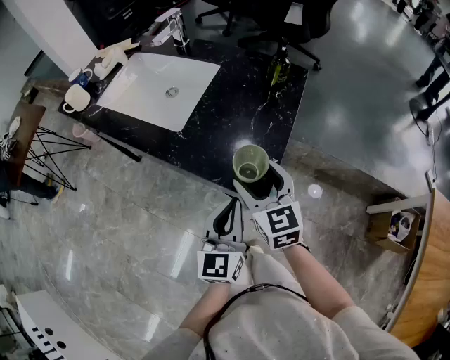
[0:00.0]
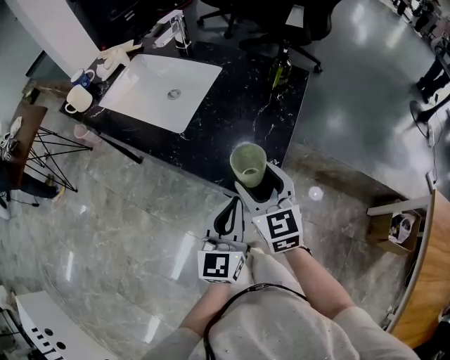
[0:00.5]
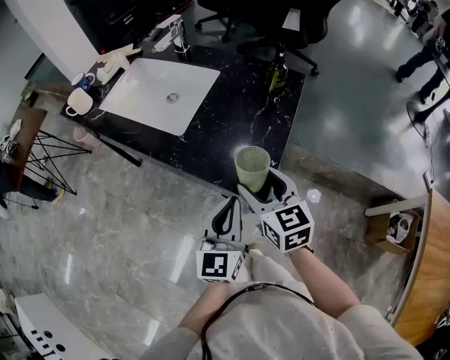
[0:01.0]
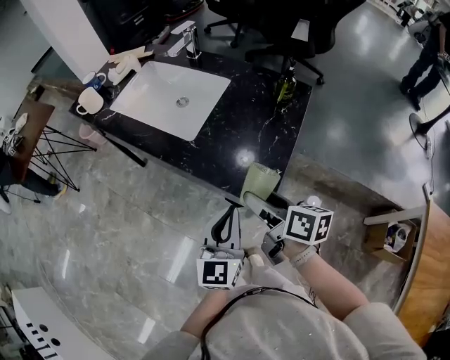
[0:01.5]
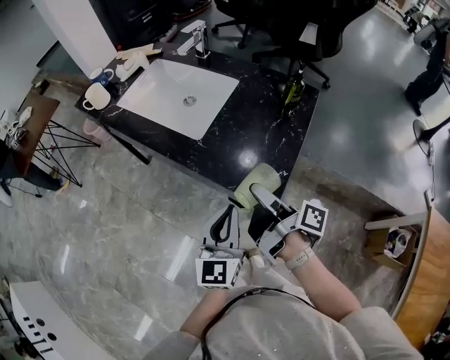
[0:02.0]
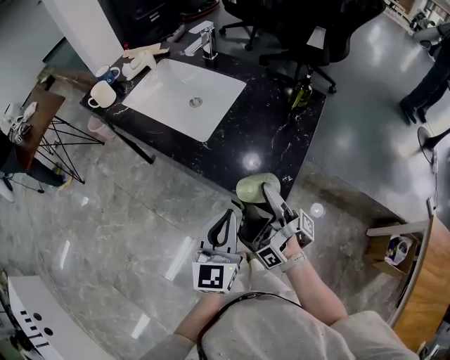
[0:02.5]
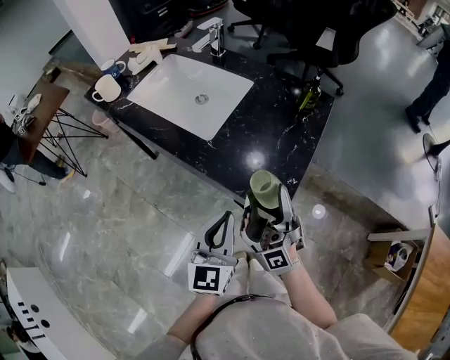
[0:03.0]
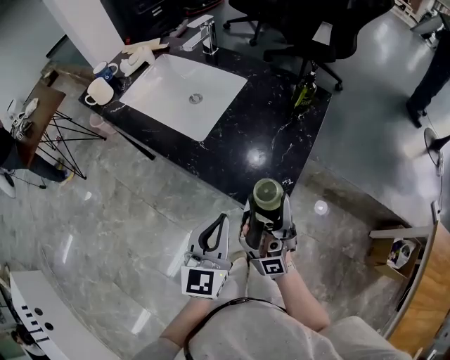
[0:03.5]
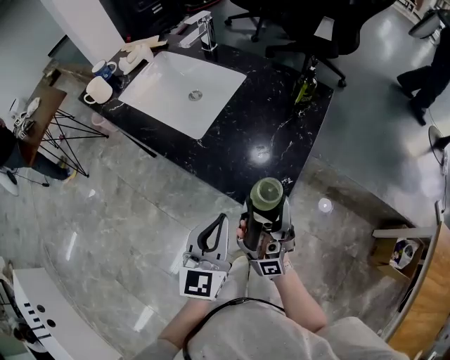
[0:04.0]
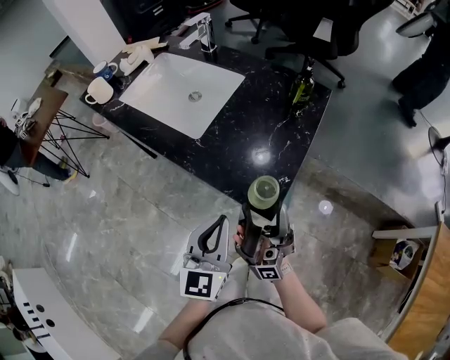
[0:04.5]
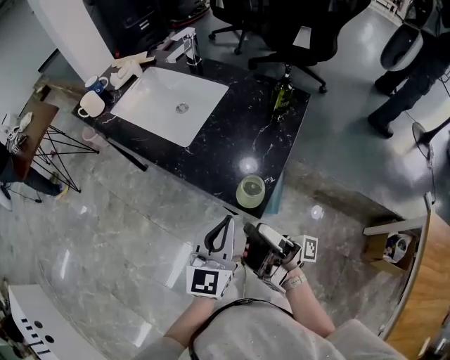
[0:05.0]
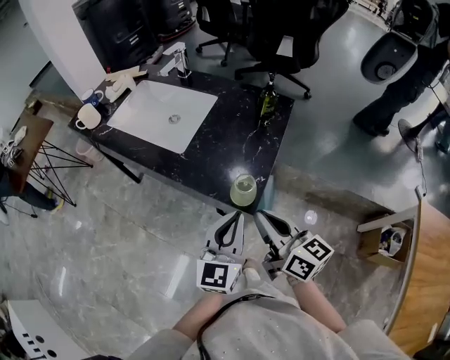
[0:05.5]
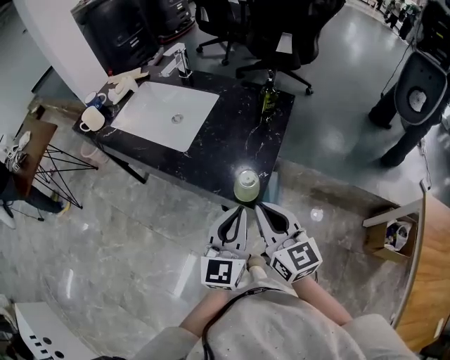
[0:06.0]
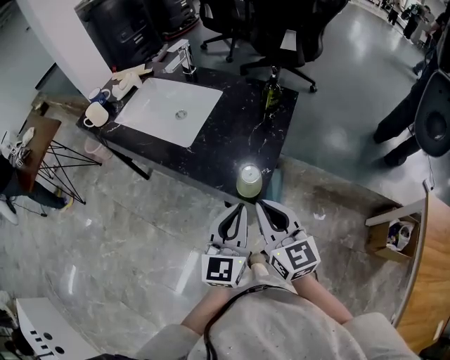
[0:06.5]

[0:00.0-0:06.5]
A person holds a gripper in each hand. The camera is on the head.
0:00.0 to 0:02.0: The left gripper ends up approximately 5 cm from where it was.
0:04.5 to 0:06.5: The left gripper moves about 5 cm.

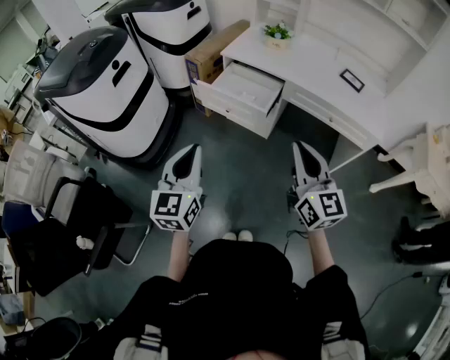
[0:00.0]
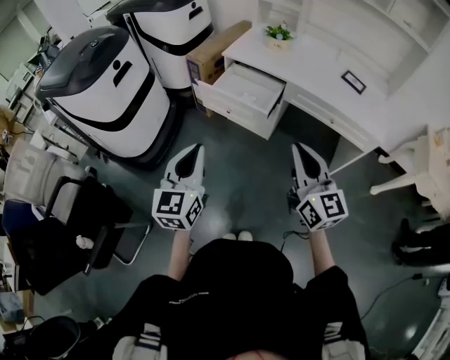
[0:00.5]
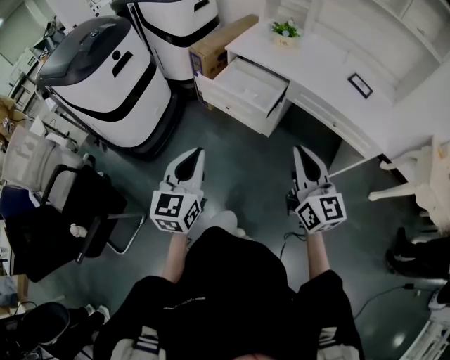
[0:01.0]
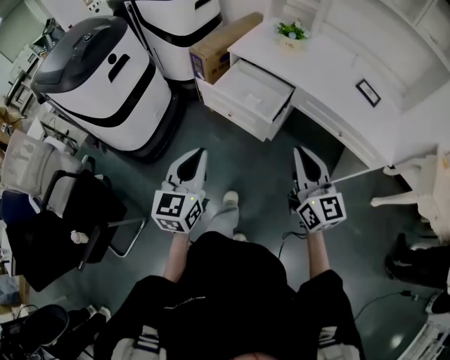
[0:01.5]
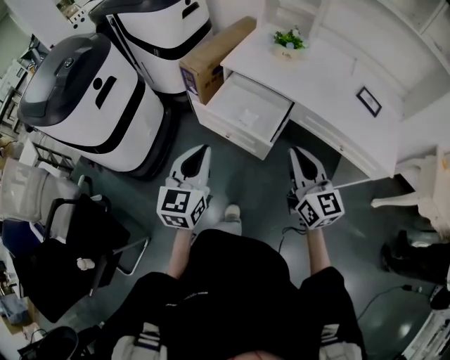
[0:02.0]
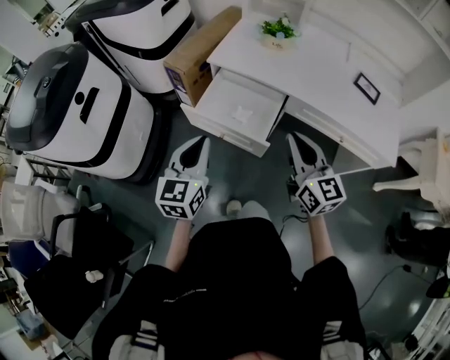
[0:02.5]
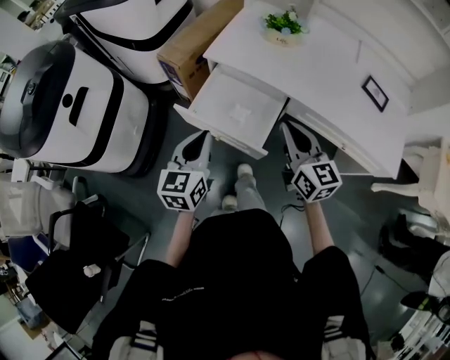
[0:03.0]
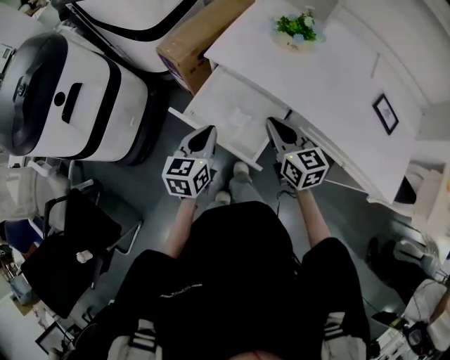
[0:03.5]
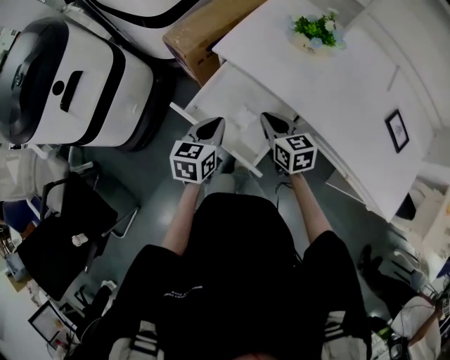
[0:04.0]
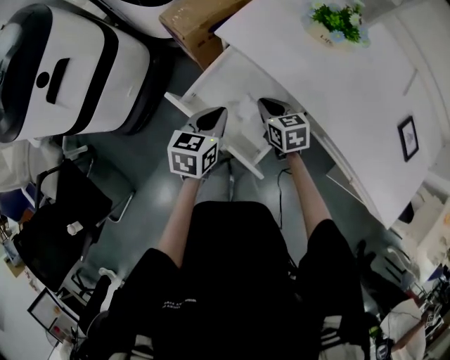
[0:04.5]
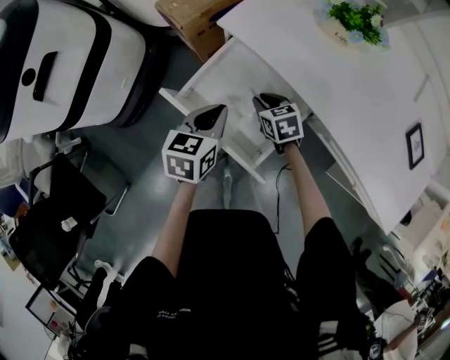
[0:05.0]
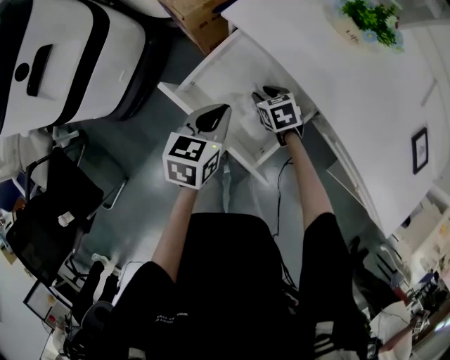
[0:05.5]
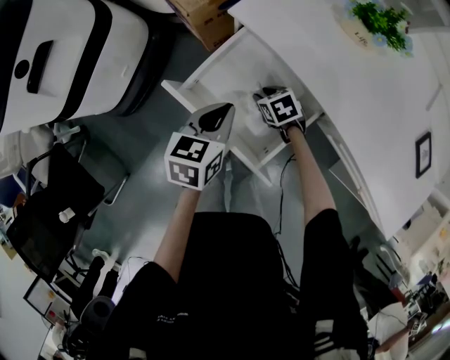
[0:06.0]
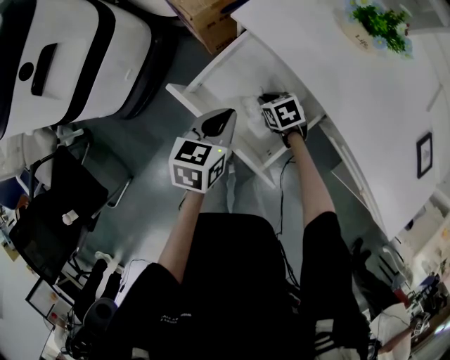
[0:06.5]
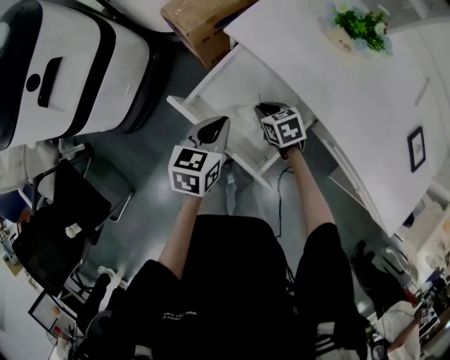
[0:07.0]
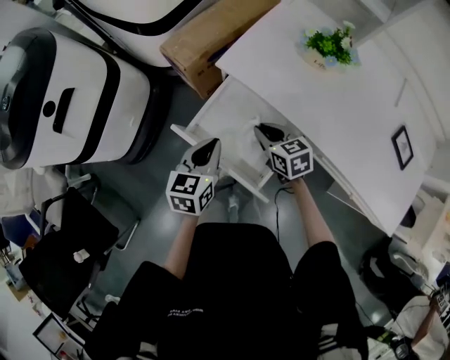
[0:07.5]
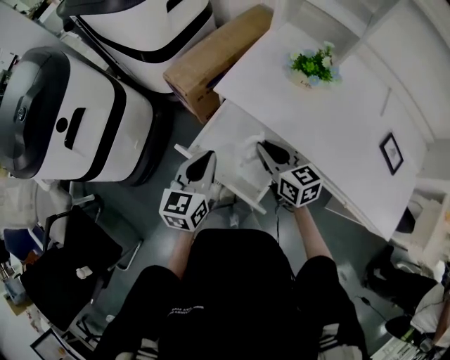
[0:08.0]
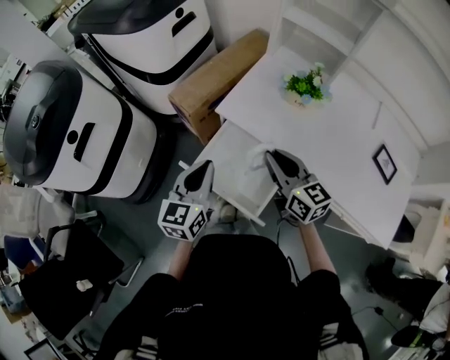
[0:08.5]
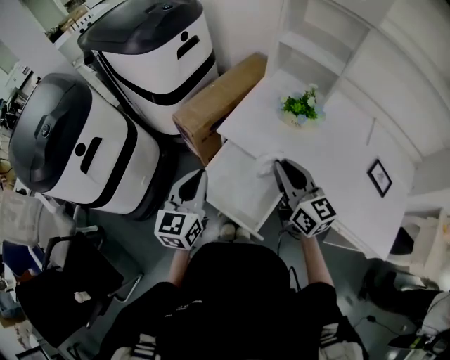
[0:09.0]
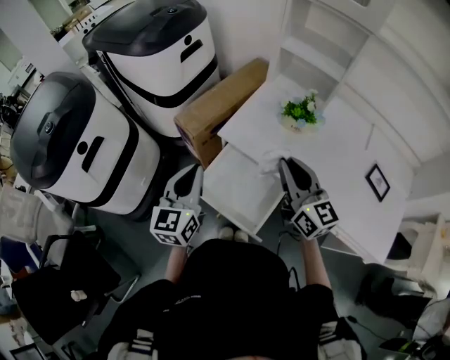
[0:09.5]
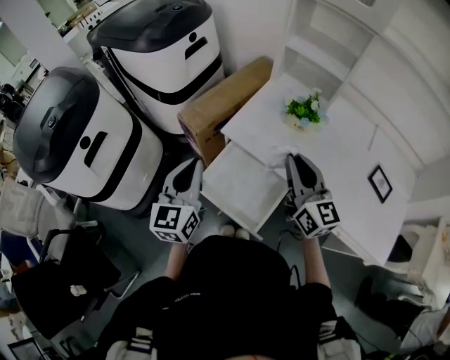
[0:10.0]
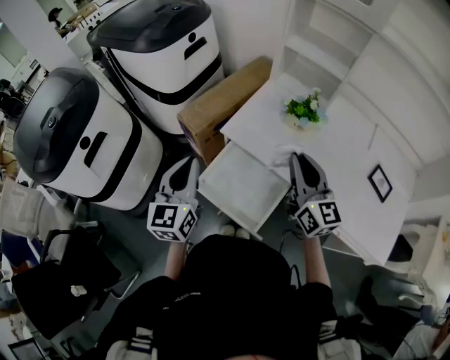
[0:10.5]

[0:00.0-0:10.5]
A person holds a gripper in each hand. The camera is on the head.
0:00.0 to 0:02.0: The two grippers go about 20 cm forward.
0:02.0 to 0:04.0: The grippers both shift forward and downward by roughly 35 cm. The left gripper turns by some 30 degrees, while the right gripper changes its angle by about 40 degrees.
0:04.0 to 0:06.5: The left gripper shifts about 5 cm downward, while the right gripper goes about 20 cm downward, angles its fingers downward, by roughly 30 degrees, and opens and closes again.
0:06.5 to 0:08.5: The left gripper moves upward, about 20 cm, and rotates roughly 30 degrees; the right gripper shifts approximately 35 cm upward, and tips its fingers upward by approximately 50 degrees.
0:08.5 to 0:10.5: The left gripper travels upward by approximately 10 cm, while the right gripper heads upward and to the right, covering about 10 cm, and turns by some 20 degrees.

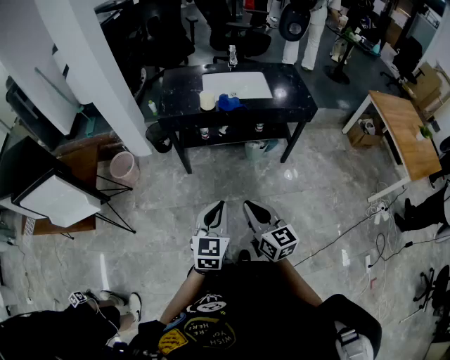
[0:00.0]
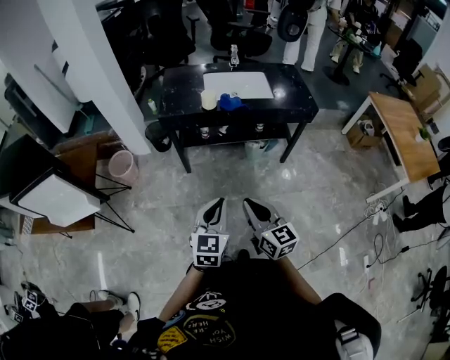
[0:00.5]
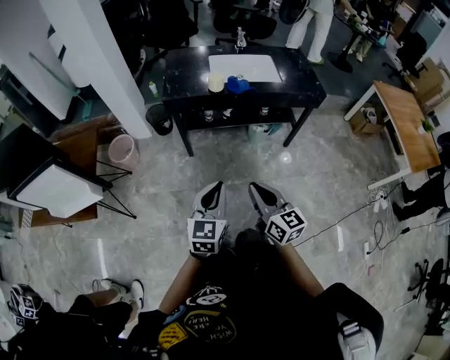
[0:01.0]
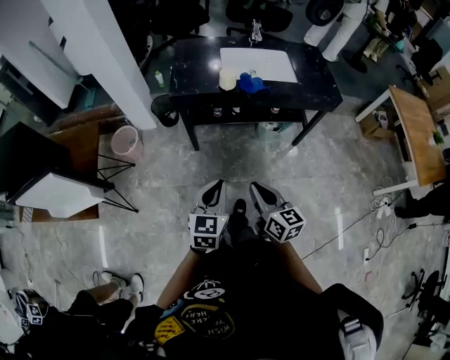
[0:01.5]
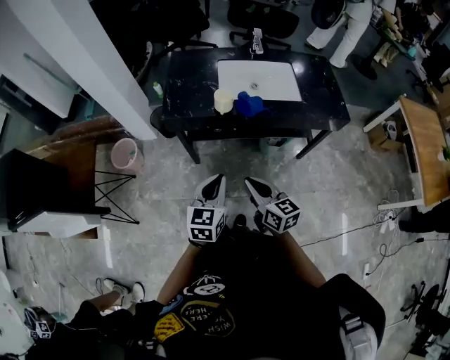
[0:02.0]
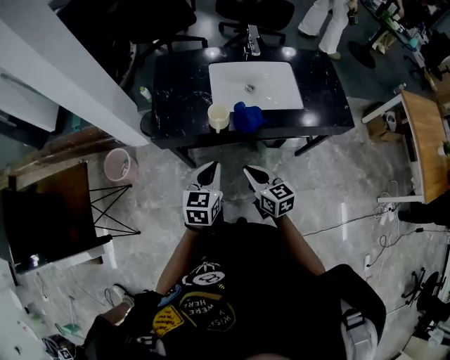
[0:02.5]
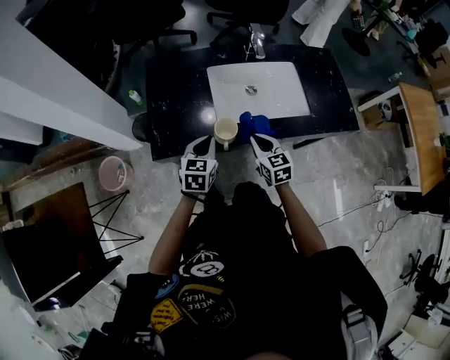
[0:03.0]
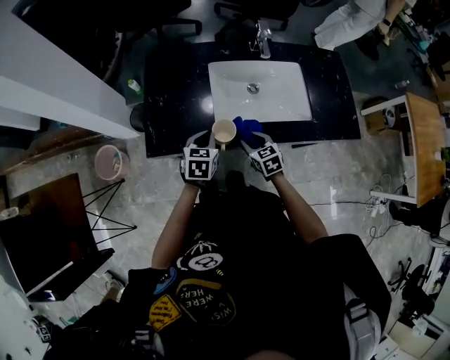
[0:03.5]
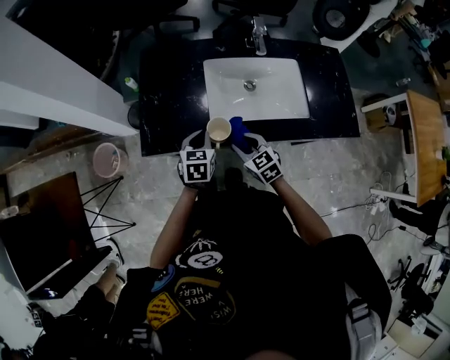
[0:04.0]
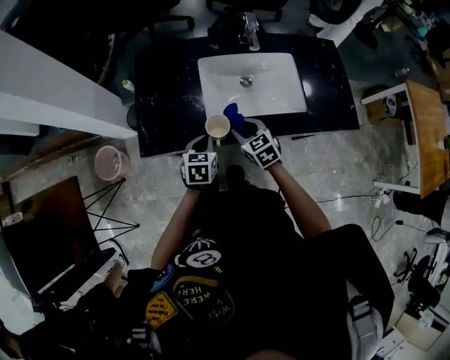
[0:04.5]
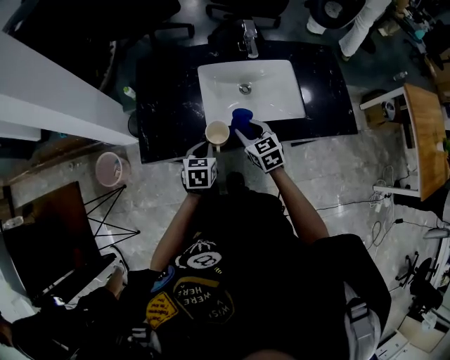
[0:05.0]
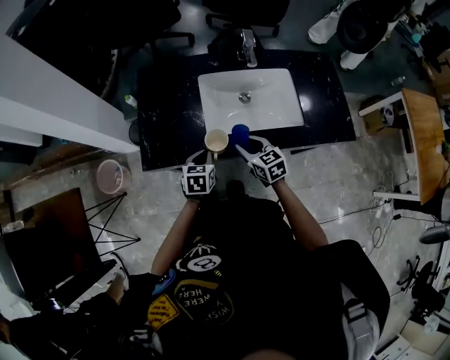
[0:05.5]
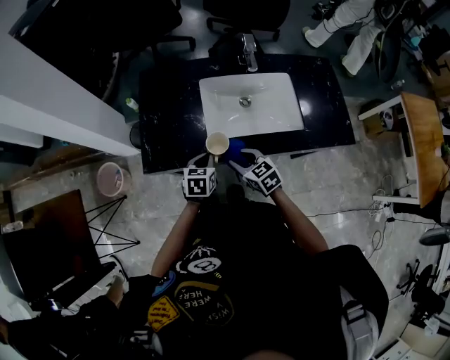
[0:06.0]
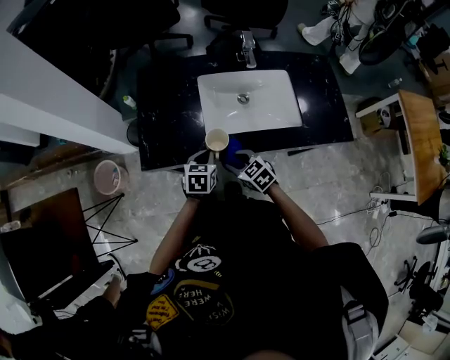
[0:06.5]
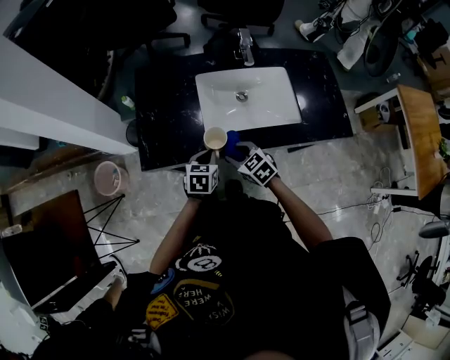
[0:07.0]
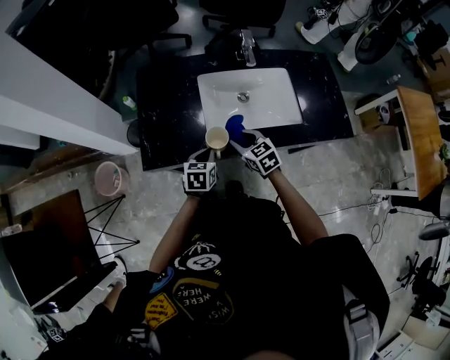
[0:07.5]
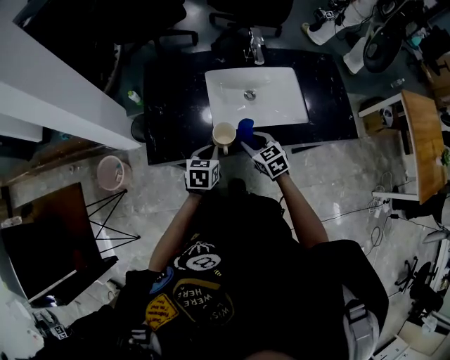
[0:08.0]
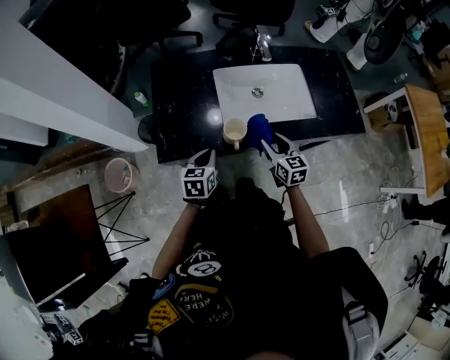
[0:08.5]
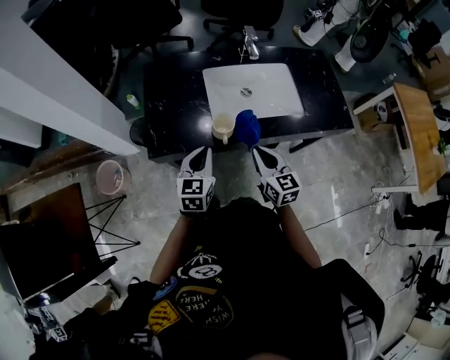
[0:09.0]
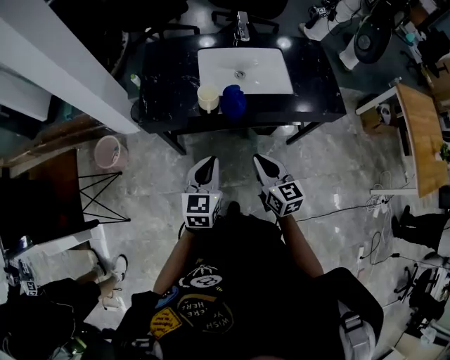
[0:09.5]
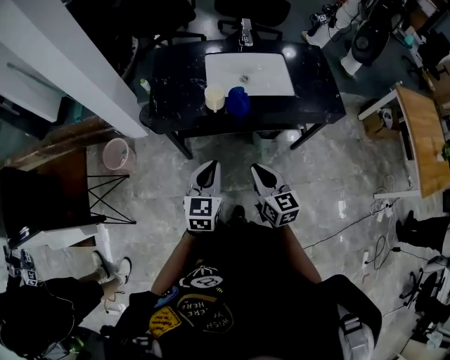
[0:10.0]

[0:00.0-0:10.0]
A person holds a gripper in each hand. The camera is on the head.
0:00.0 to 0:02.0: The grippers both shift forward by roughly 25 cm.
0:02.0 to 0:04.0: The right gripper travels forward and downward by approximately 35 cm, changes its angle by about 30 degrees, and opens, while the left gripper is displaced forward by about 40 cm.
0:08.0 to 0:10.0: Both grippers move backward and upward, roughly 35 cm. The right gripper turns by about 30 degrees, and closes. Meanwhile the left gripper turns by some 30 degrees.
